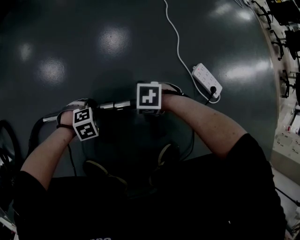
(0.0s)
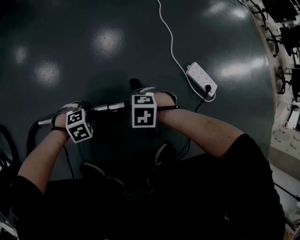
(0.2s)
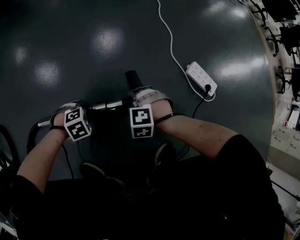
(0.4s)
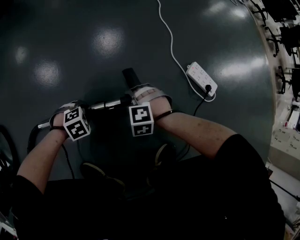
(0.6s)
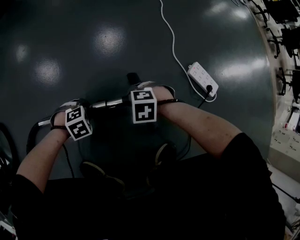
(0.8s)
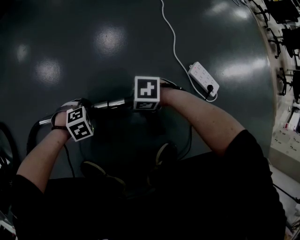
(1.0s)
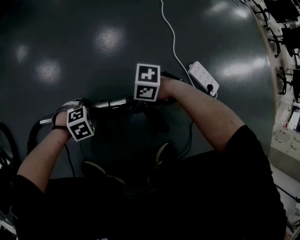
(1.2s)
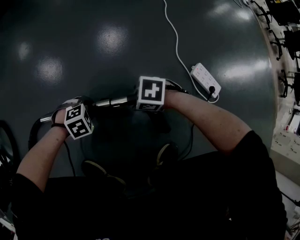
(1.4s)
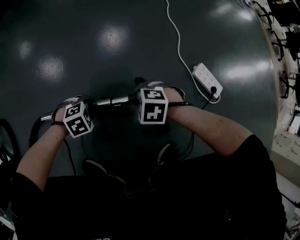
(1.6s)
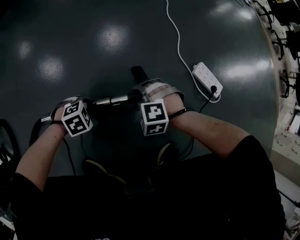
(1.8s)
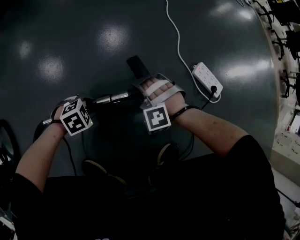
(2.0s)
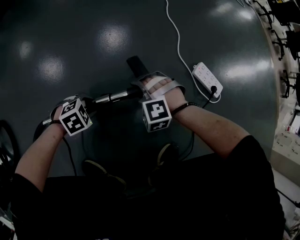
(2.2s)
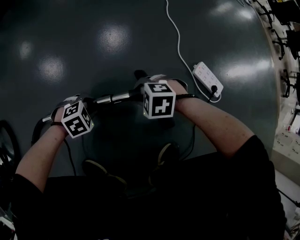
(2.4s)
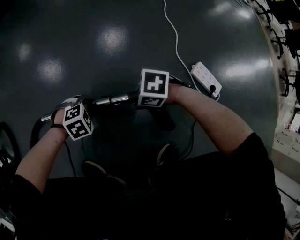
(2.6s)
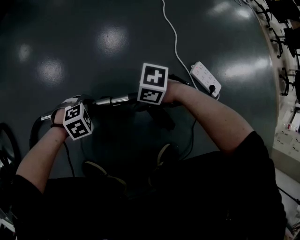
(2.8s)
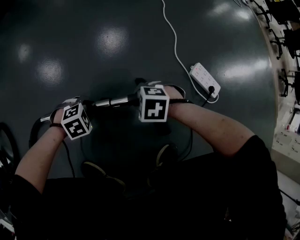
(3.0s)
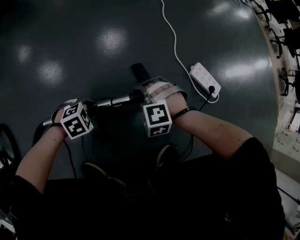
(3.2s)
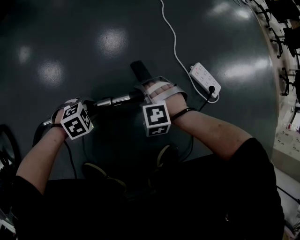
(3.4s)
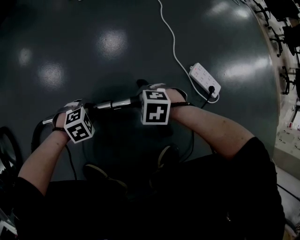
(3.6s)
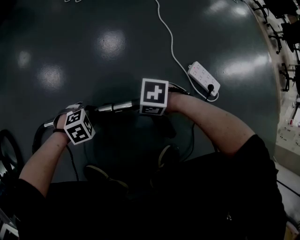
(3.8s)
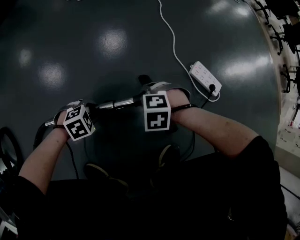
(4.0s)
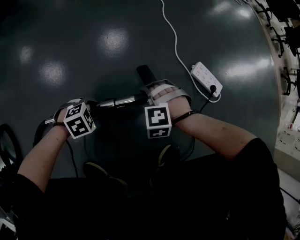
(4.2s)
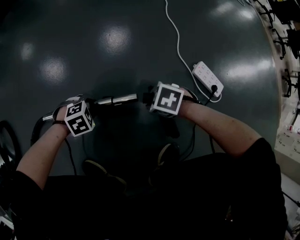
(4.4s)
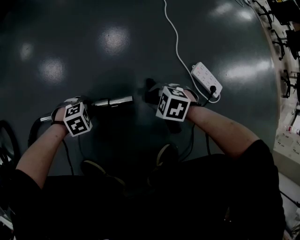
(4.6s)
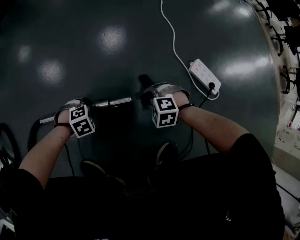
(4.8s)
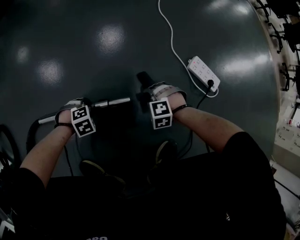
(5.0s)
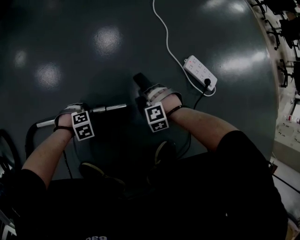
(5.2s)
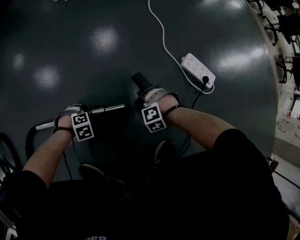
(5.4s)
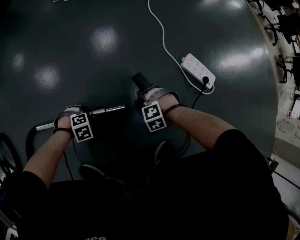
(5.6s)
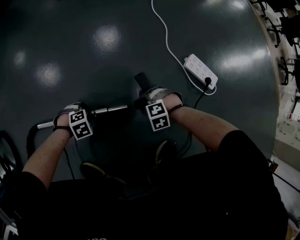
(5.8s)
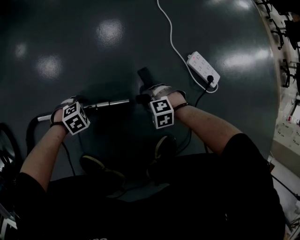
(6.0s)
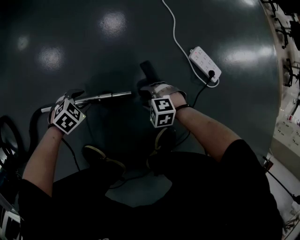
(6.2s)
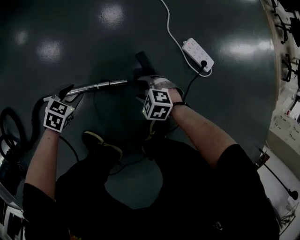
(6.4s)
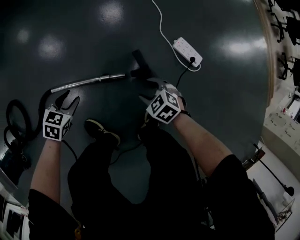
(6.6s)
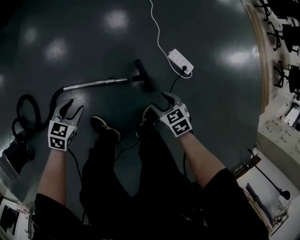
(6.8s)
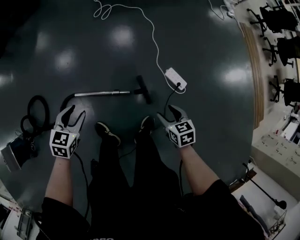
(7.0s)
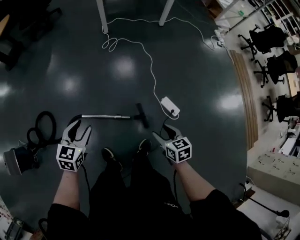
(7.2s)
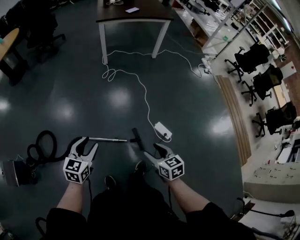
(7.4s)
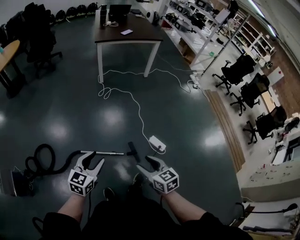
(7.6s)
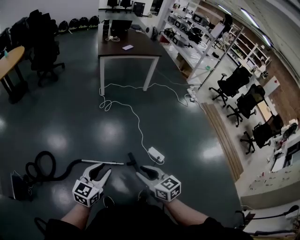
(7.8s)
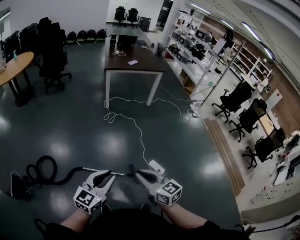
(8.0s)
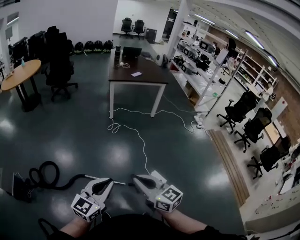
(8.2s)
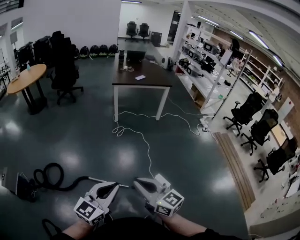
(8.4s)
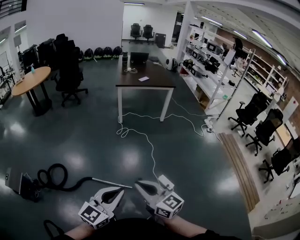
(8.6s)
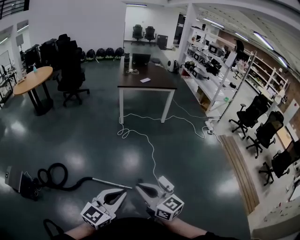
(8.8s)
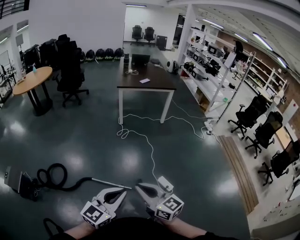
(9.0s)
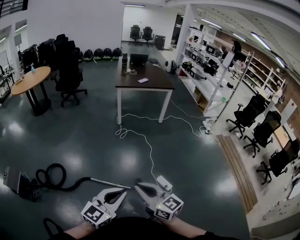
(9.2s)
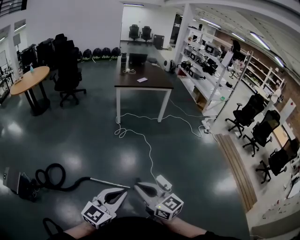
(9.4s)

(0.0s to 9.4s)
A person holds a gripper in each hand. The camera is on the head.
0.0s - 1.6s: The right gripper turns by about 20 degrees.
1.6s - 3.2s: The right gripper turns by roughly 30 degrees.
3.2s - 4.8s: The grippers both shift downward by about 5 cm.
4.8s - 6.2s: The left gripper heads upward, covering roughly 5 cm, and turns by some 20 degrees; the right gripper moves roughly 5 cm downward and comes back, and opens.
6.2s - 7.8s: The two grippers go approximately 80 cm upward. The left gripper points its fingers some 50 degrees further upward. The right gripper angles its fingers upward, by about 50 degrees, and closes up.
7.8s - 9.4s: The right gripper is displaced upward by approximately 10 cm, rotates approximately 20 degrees, and closes its fingers; the left gripper is displaced upward, to the right and backward by approximately 20 cm, and closes.

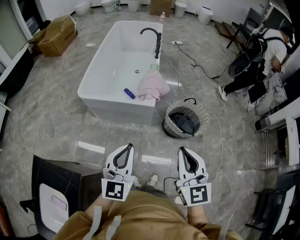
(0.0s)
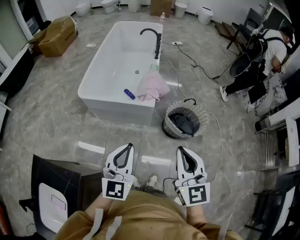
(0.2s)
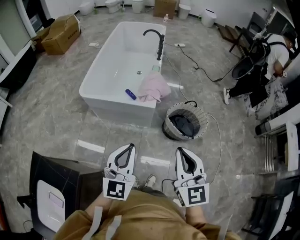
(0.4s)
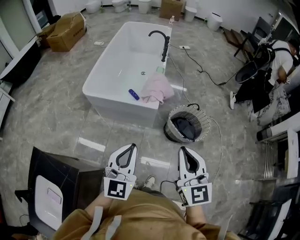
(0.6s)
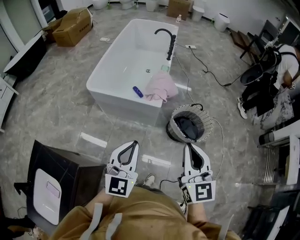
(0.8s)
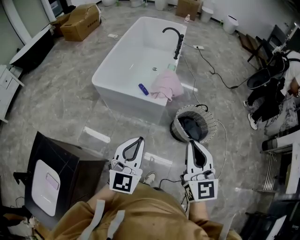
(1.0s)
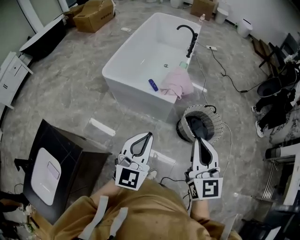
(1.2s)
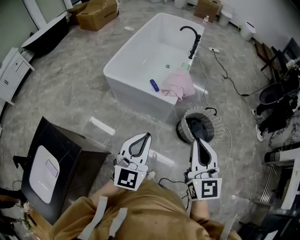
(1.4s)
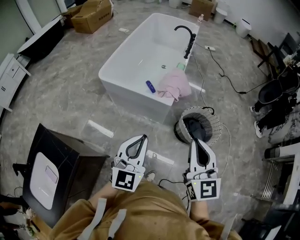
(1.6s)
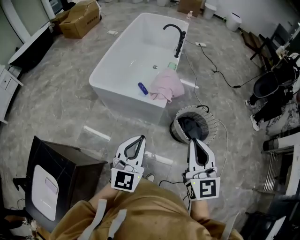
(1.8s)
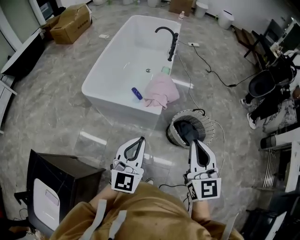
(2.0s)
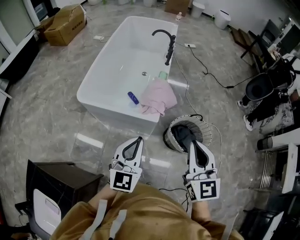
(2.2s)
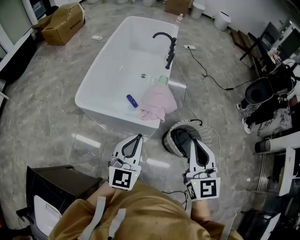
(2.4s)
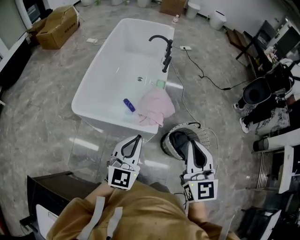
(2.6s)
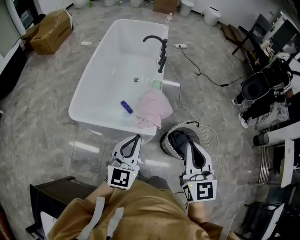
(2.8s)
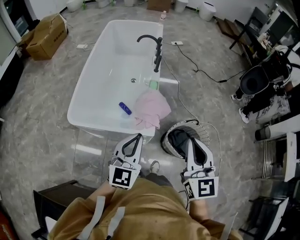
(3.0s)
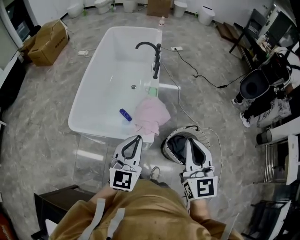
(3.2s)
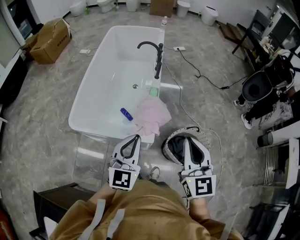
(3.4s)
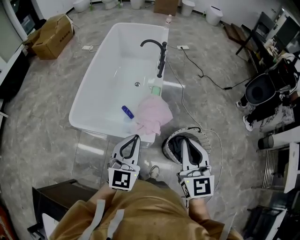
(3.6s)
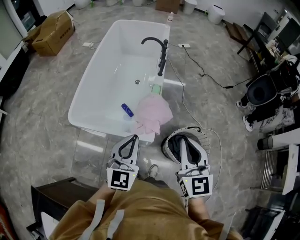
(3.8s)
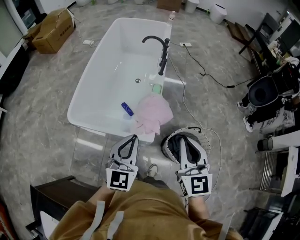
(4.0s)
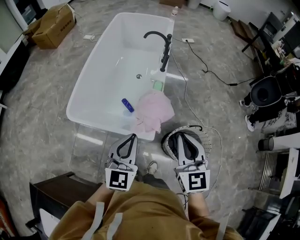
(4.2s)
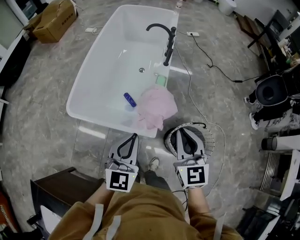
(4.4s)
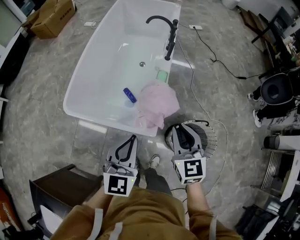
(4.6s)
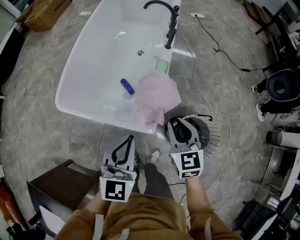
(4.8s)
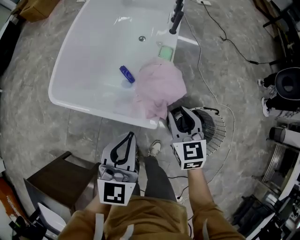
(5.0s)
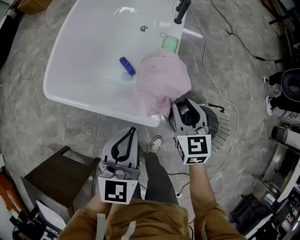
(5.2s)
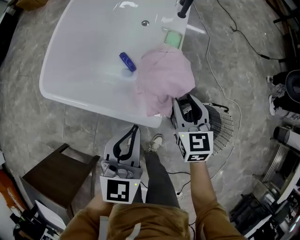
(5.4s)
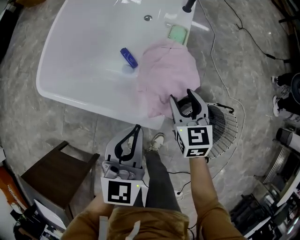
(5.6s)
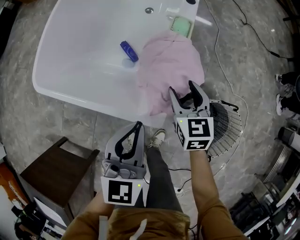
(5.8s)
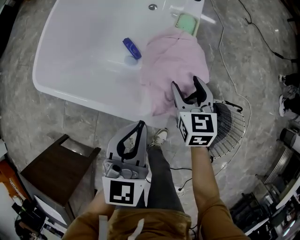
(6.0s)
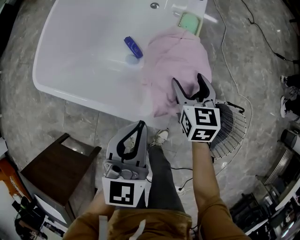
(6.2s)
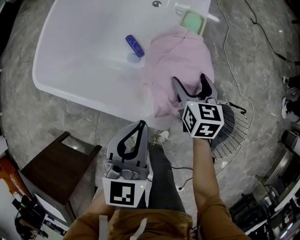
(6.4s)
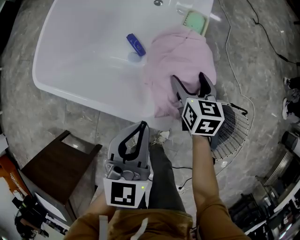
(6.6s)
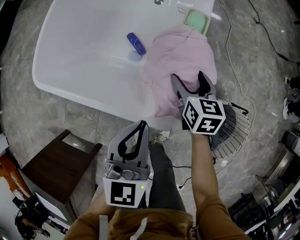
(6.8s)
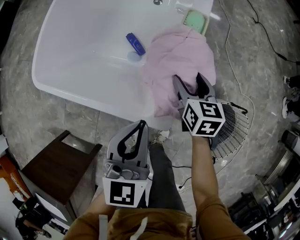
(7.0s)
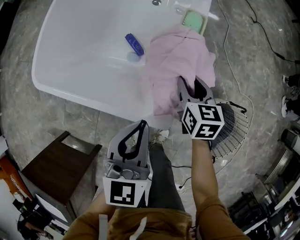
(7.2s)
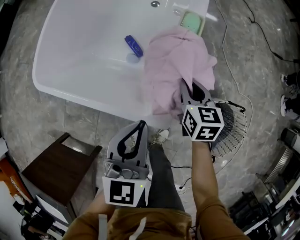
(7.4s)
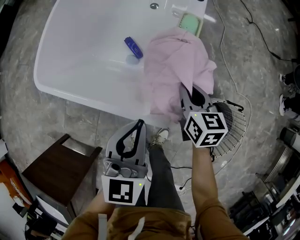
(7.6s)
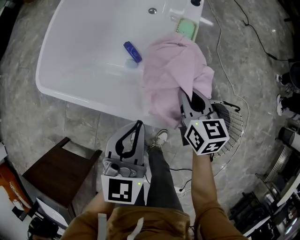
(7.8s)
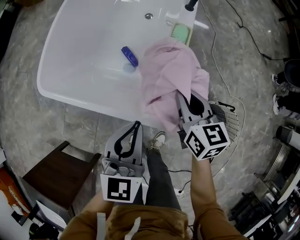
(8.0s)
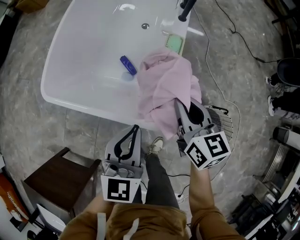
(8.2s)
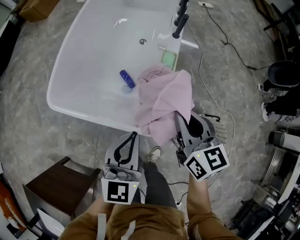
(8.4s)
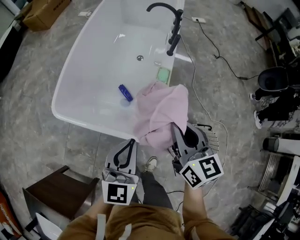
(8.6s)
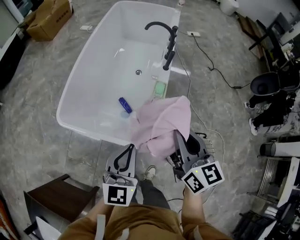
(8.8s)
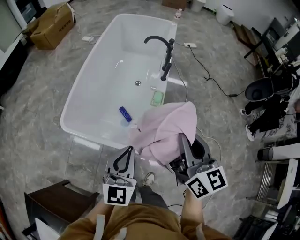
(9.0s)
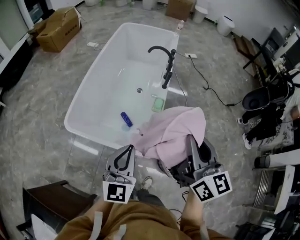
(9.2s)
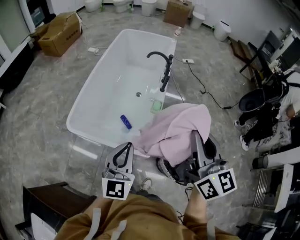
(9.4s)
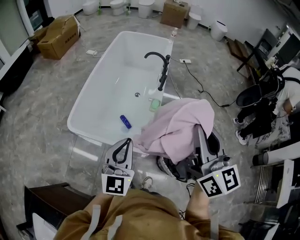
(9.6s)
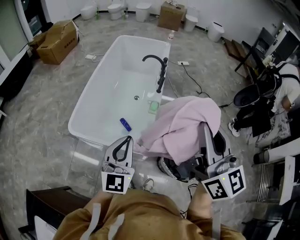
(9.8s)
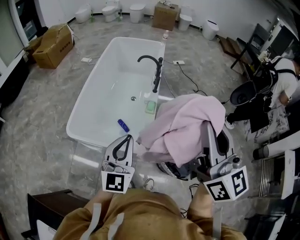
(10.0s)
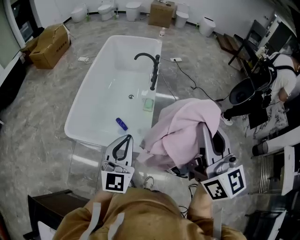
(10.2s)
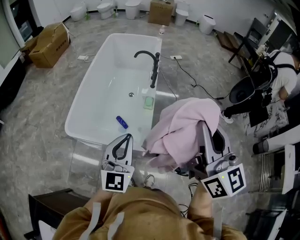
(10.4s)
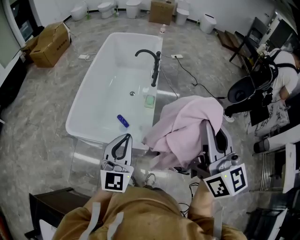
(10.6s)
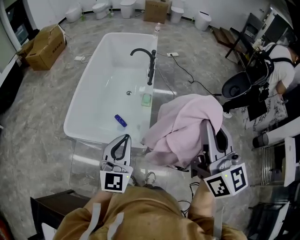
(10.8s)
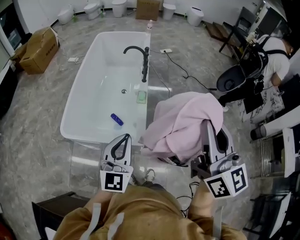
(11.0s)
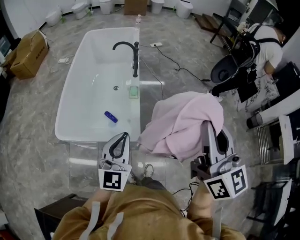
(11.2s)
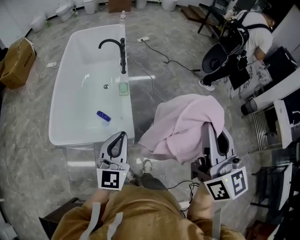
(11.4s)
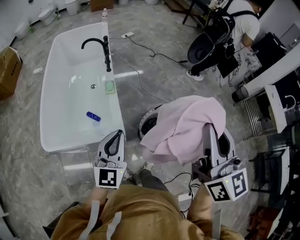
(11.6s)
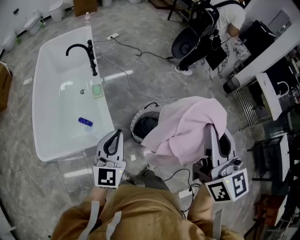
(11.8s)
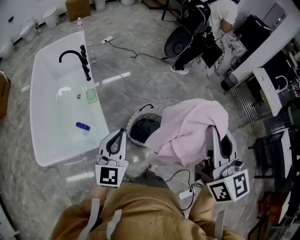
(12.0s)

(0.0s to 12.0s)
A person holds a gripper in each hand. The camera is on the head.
0.0s - 1.6s: The left gripper moves some 5 cm, while the right gripper shifts approximately 5 cm forward.
1.6s - 3.0s: Both grippers travel together forward, approximately 30 cm.
3.0s - 4.4s: The right gripper travels forward and downward by roughly 15 cm; the left gripper shifts about 5 cm forward.
4.4s - 6.0s: The right gripper moves downward and forward, some 40 cm, rotates approximately 20 degrees, and opens. The left gripper goes approximately 25 cm downward.
6.0s - 7.6s: The right gripper closes up.
7.6s - 9.0s: The right gripper is displaced upward by about 40 cm, and rotates approximately 30 degrees. The left gripper is displaced upward by approximately 25 cm.
9.0s - 10.4s: The right gripper is displaced upward and backward by about 25 cm, and turns by roughly 20 degrees, while the left gripper is displaced upward and backward by about 10 cm.
10.4s - 12.0s: The right gripper moves about 25 cm, and changes its angle by some 40 degrees. Meanwhile the left gripper moves some 20 cm, and changes its angle by some 30 degrees.

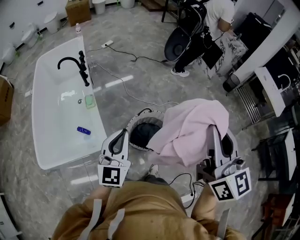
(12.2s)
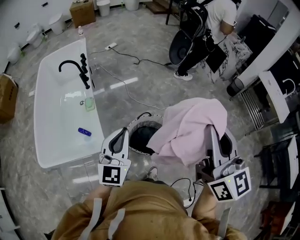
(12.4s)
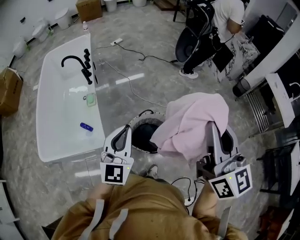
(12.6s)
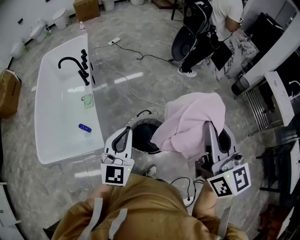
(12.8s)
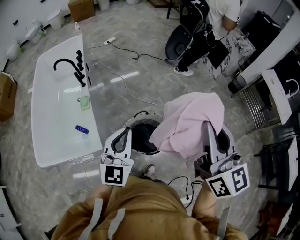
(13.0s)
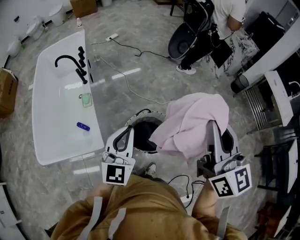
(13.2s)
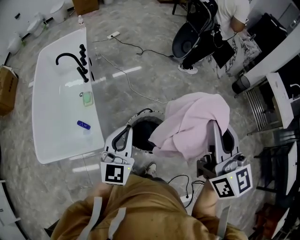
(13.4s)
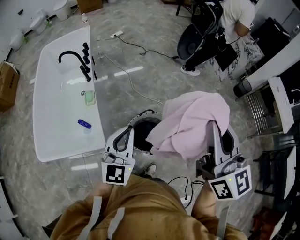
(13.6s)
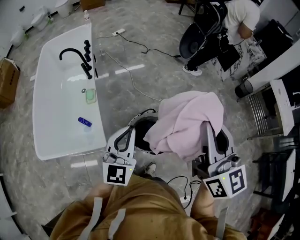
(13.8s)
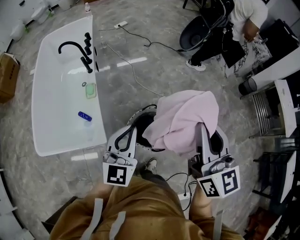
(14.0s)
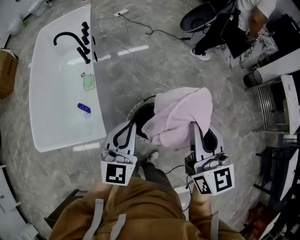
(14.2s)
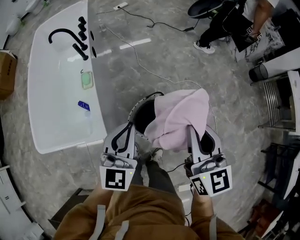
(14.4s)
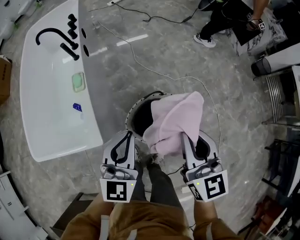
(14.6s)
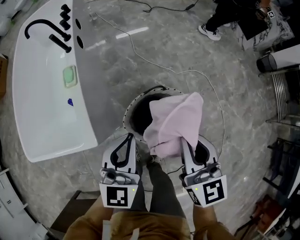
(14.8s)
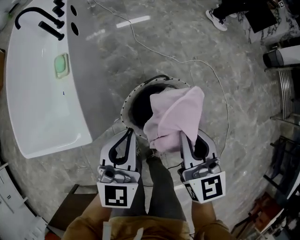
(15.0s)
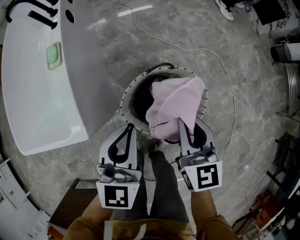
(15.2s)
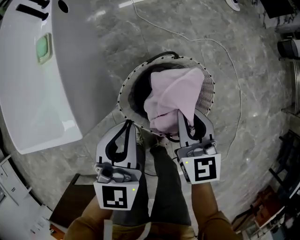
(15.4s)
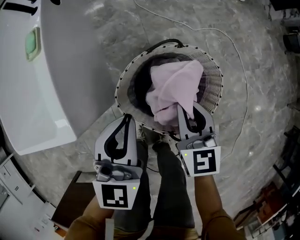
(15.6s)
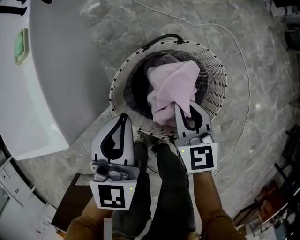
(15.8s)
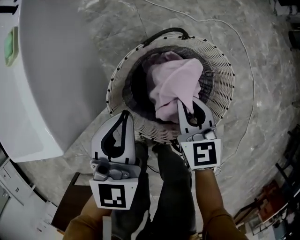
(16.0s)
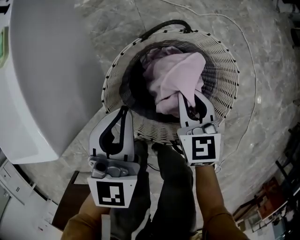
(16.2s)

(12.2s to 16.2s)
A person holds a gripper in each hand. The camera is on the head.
12.2s - 13.6s: The left gripper is displaced forward and to the right by approximately 10 cm; the right gripper heads forward, covering about 10 cm.
13.6s - 14.8s: The right gripper heads downward, covering some 35 cm, and rotates roughly 20 degrees, while the left gripper moves downward, about 20 cm.
14.8s - 16.2s: Both grippers travel together downward, approximately 35 cm. The right gripper swivels about 20 degrees.
